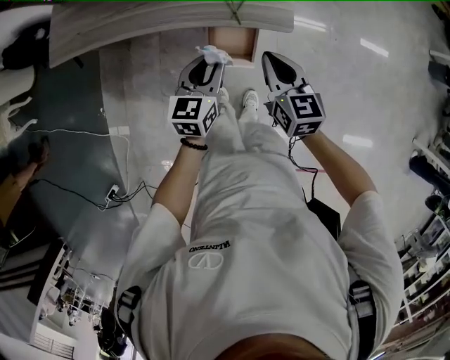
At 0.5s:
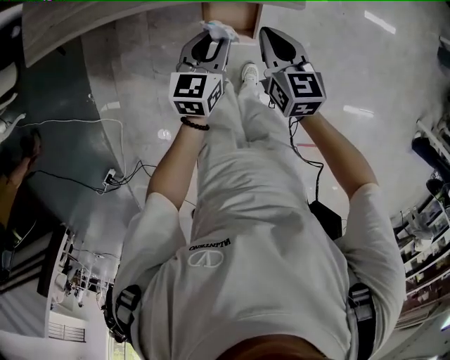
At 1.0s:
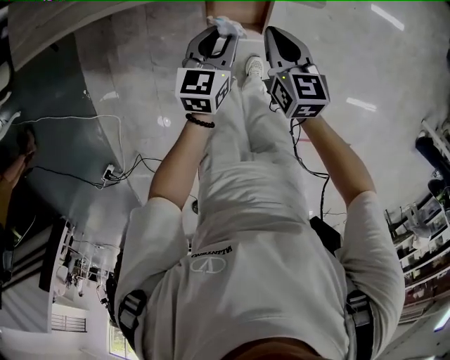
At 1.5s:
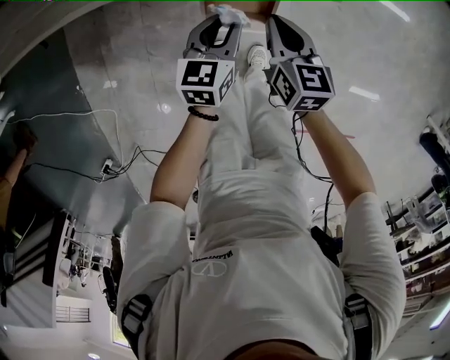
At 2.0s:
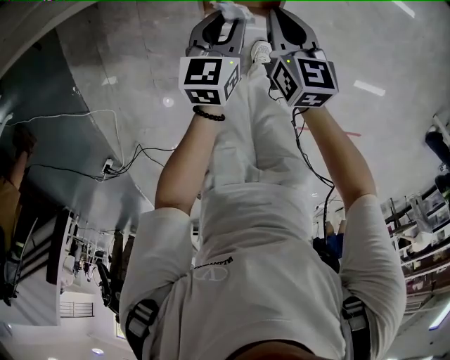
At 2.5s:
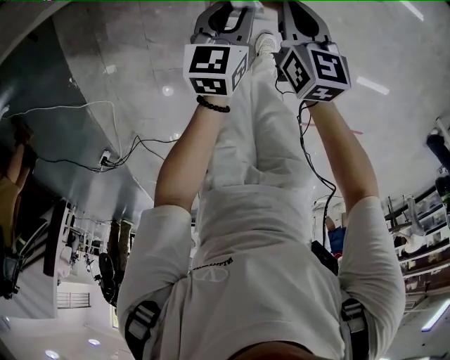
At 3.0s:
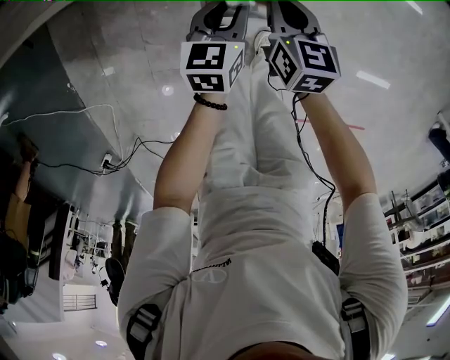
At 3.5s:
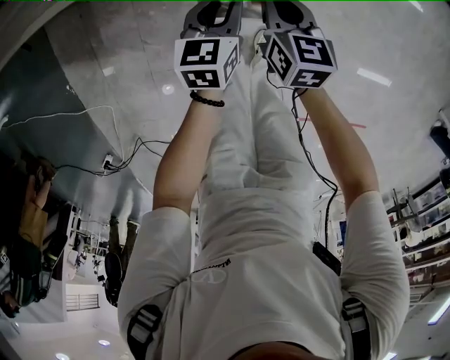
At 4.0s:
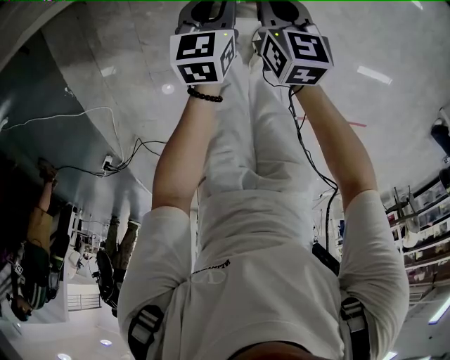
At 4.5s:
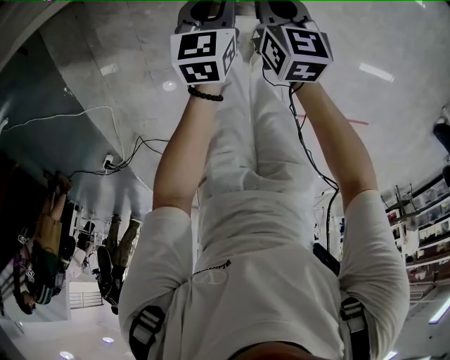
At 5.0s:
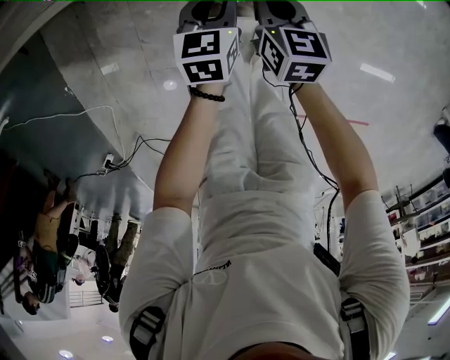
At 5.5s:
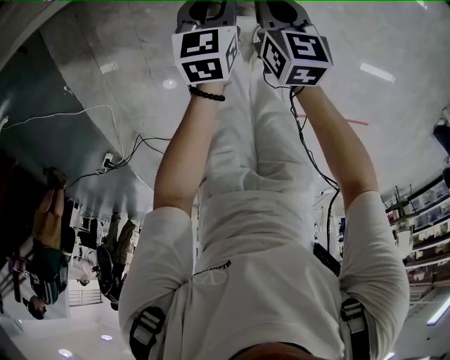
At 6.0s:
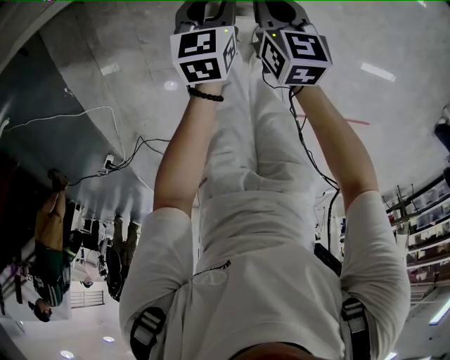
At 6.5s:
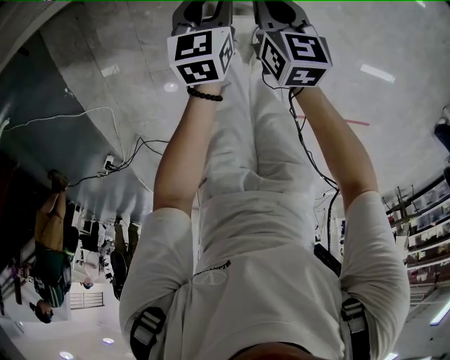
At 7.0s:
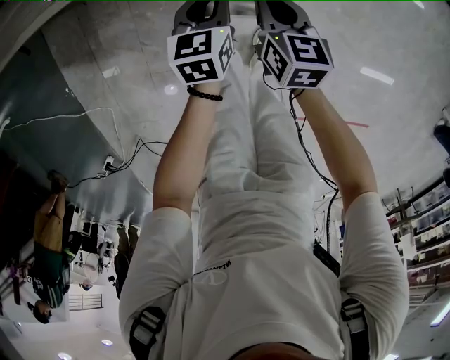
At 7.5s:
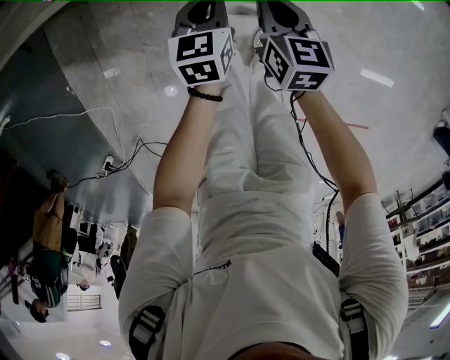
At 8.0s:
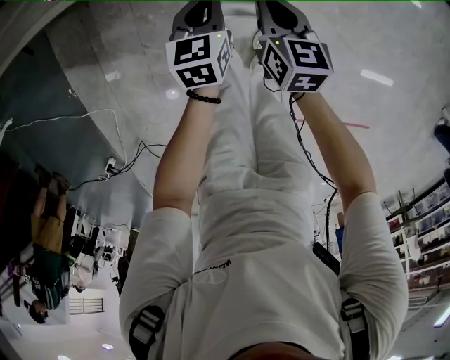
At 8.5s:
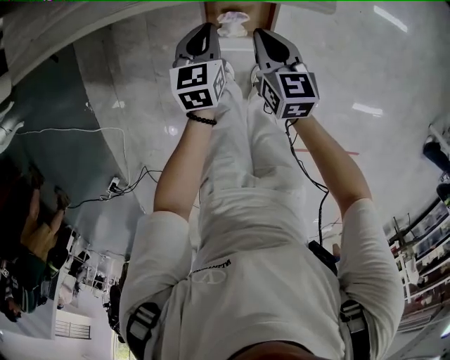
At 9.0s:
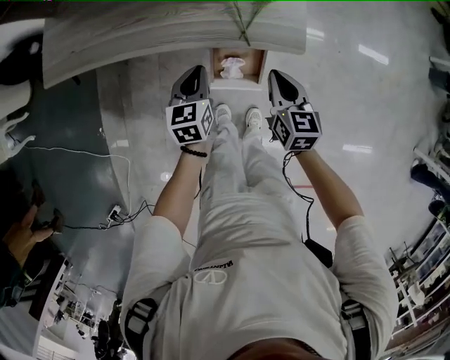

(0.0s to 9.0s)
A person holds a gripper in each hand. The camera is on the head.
0.0s - 2.0s: The grippers both shift downward by about 25 cm.
2.0s - 4.5s: Both grippers travel together downward, about 10 cm.
4.5s - 7.0s: The grippers make only small movements.
7.0s - 9.0s: Both grippers move upward, approximately 25 cm.

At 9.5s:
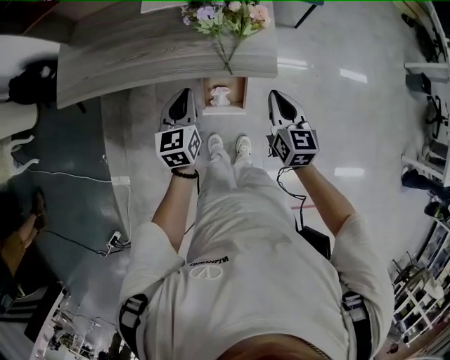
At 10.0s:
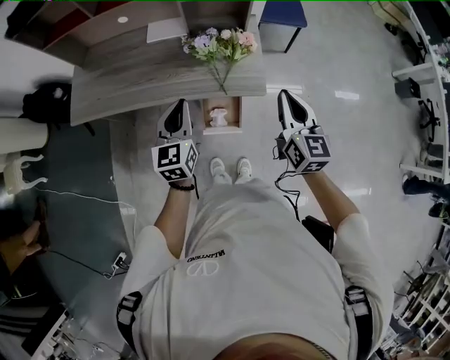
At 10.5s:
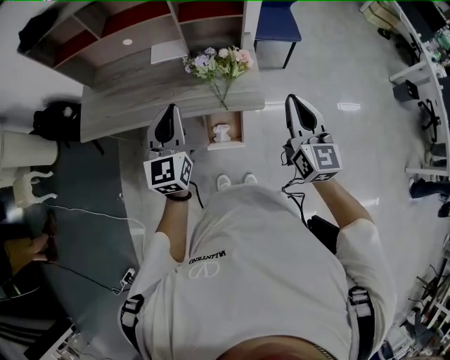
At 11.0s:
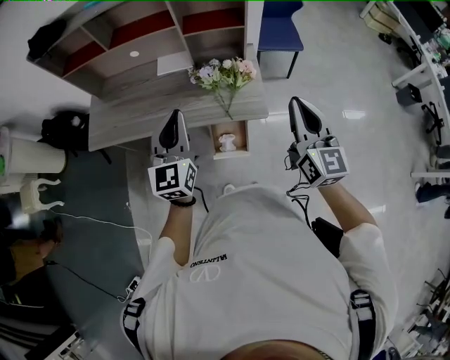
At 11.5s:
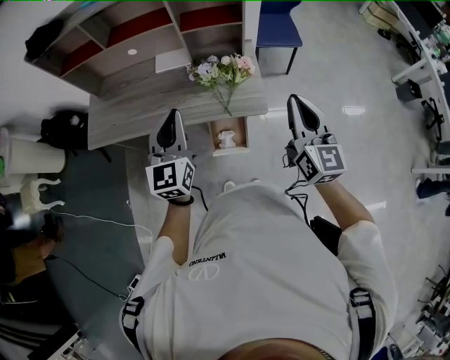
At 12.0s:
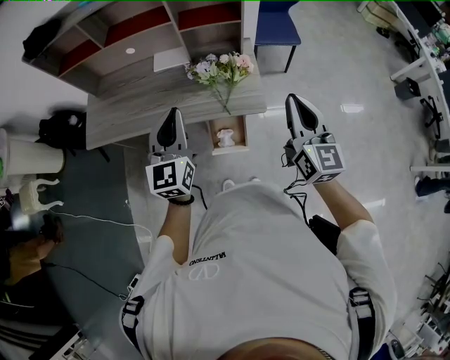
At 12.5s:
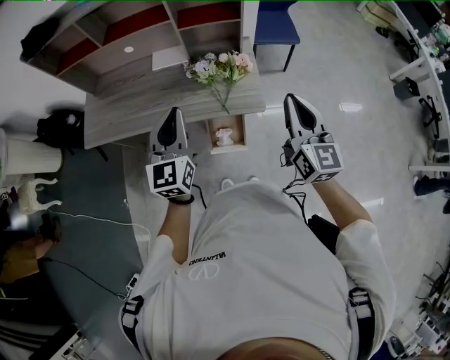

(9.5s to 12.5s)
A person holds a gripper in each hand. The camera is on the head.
9.5s - 11.0s: The grippers both shift upward by approximately 25 cm. The right gripper turns by roughly 30 degrees. Meanwhile the left gripper rotates some 30 degrees.
11.0s - 12.5s: The grippers make only small movements.

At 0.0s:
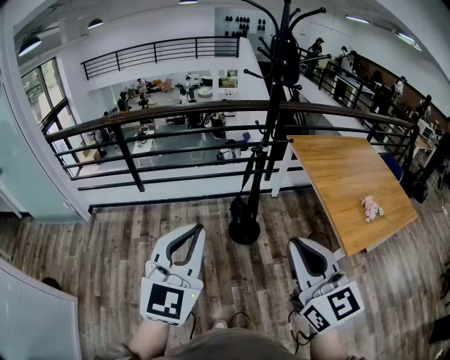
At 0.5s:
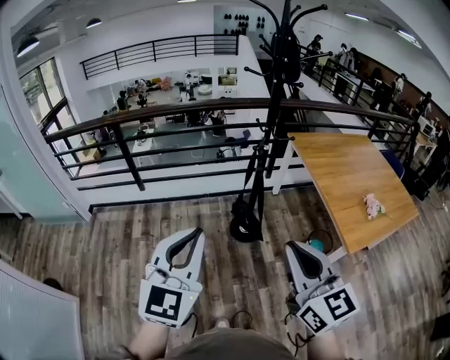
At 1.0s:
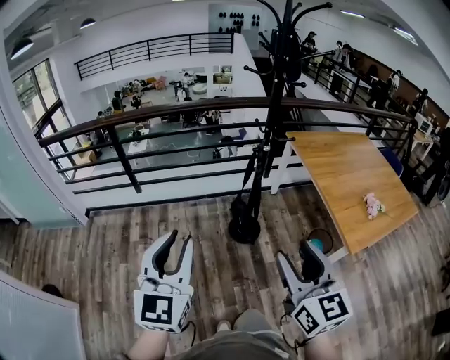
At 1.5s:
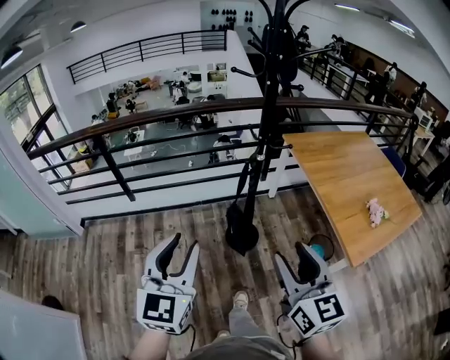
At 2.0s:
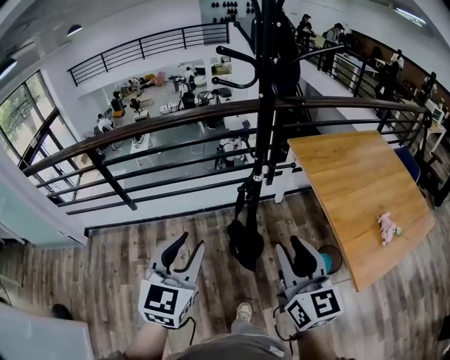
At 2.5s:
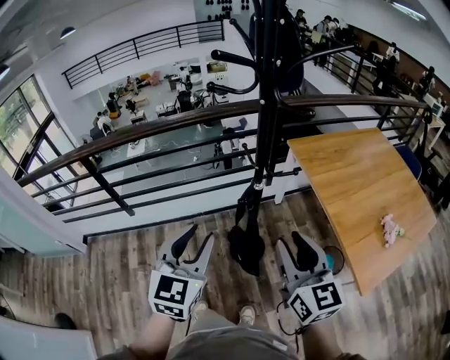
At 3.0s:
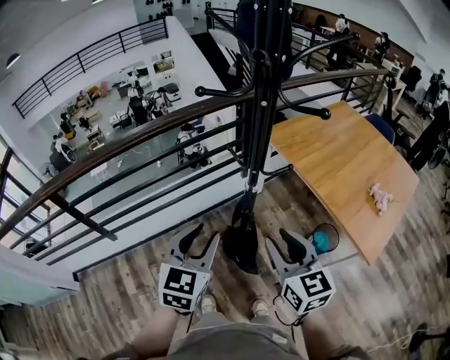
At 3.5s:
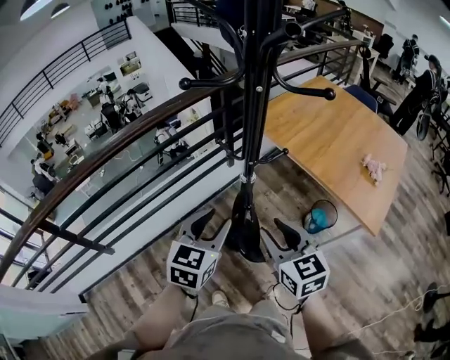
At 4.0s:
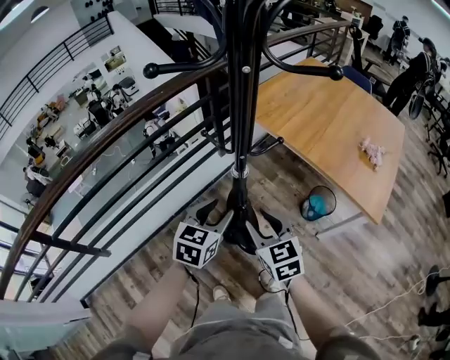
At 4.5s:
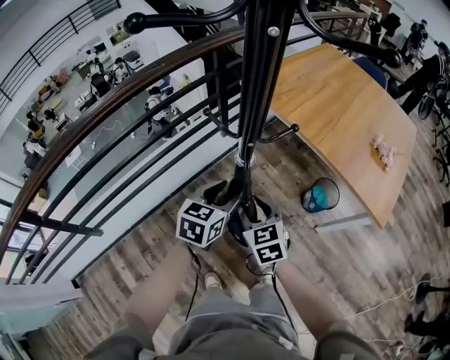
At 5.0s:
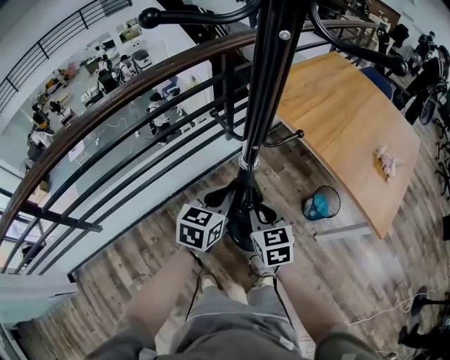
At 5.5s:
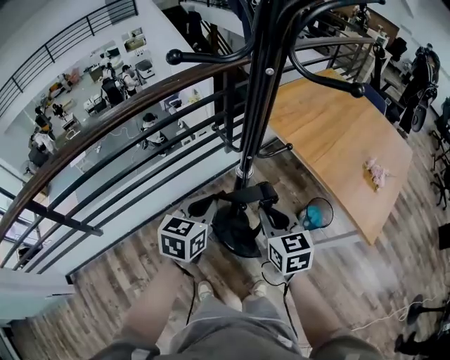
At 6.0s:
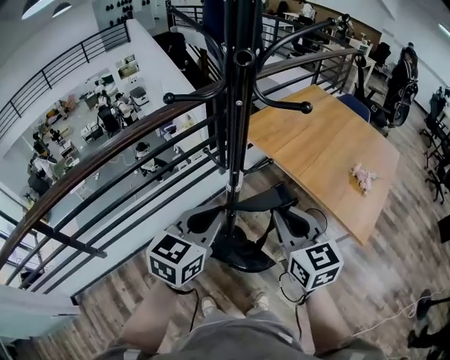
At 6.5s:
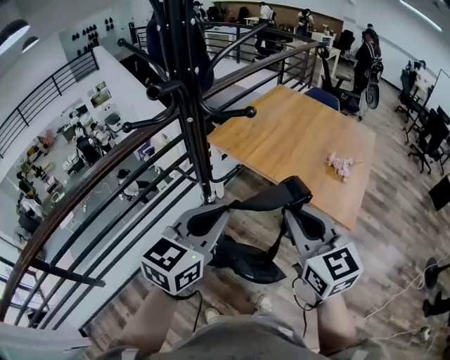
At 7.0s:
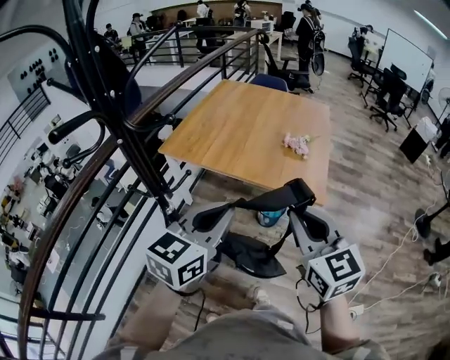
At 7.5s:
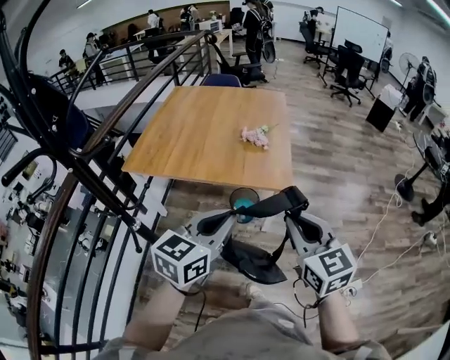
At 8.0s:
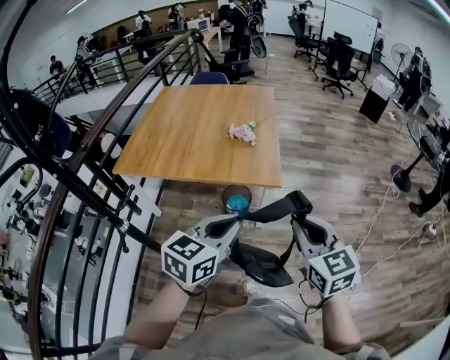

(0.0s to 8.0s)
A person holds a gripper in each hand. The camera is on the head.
0.0s - 2.0s: The grippers both shift forward by about 25 cm. The right gripper opens; the left gripper opens up.
2.0s - 4.0s: The left gripper changes place by roughly 30 cm, and swivels approximately 50 degrees. The right gripper moves downward, some 20 cm, and turns by some 30 degrees.
4.0s - 6.0s: The left gripper goes some 15 cm upward, and closes. Meanwhile the right gripper moves upward and to the right, roughly 20 cm, and closes its fingers.
6.0s - 8.0s: The right gripper ends up some 40 cm from where it was, and rotates some 40 degrees. Meanwhile the left gripper reaches about 5 cm upward, then returns, and rotates about 50 degrees.

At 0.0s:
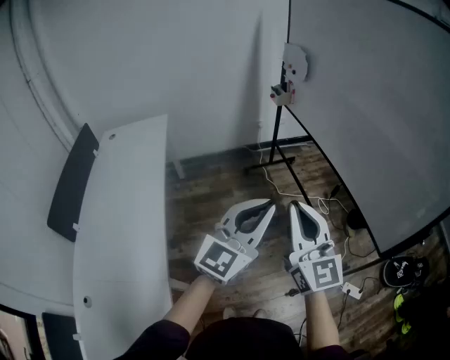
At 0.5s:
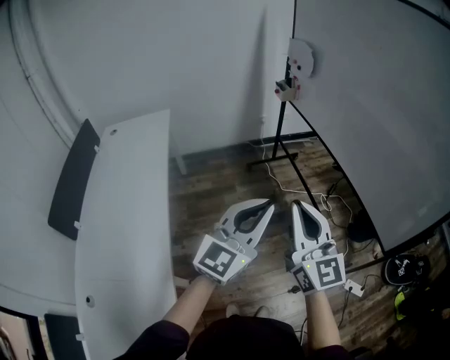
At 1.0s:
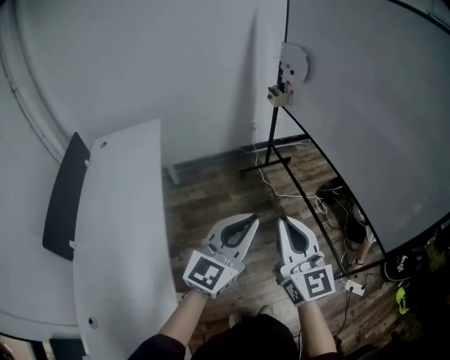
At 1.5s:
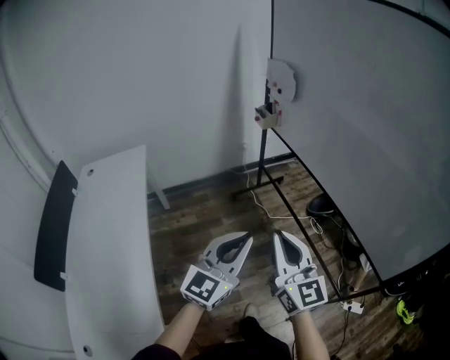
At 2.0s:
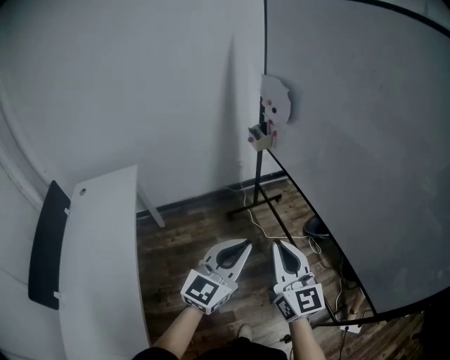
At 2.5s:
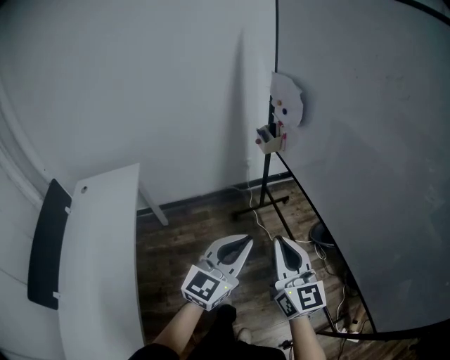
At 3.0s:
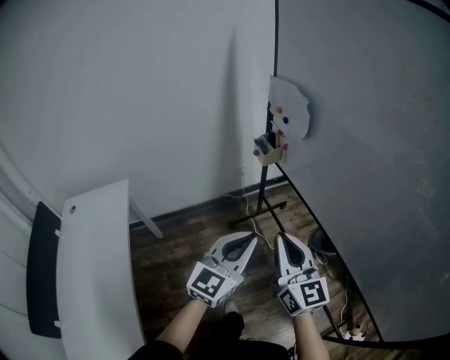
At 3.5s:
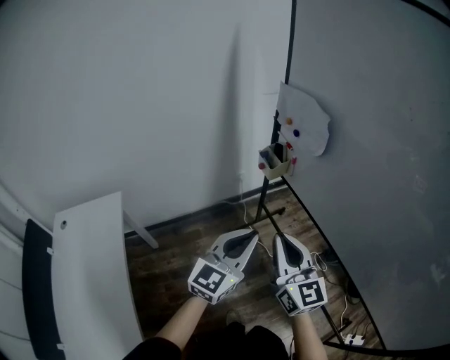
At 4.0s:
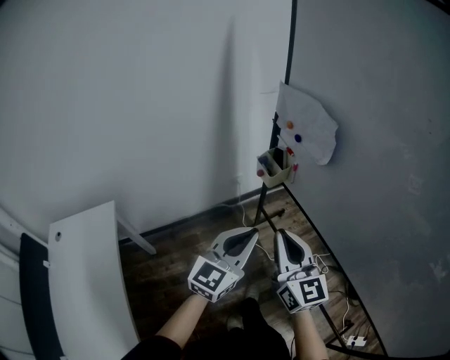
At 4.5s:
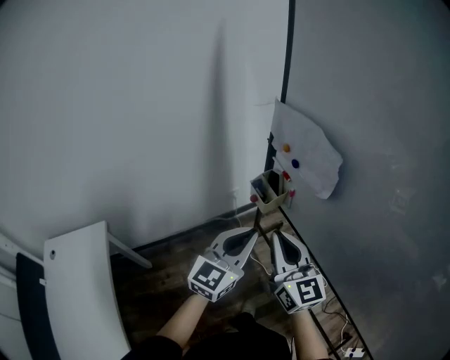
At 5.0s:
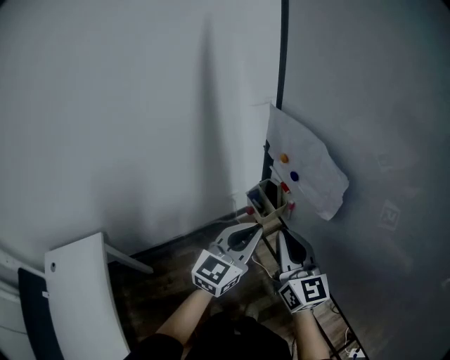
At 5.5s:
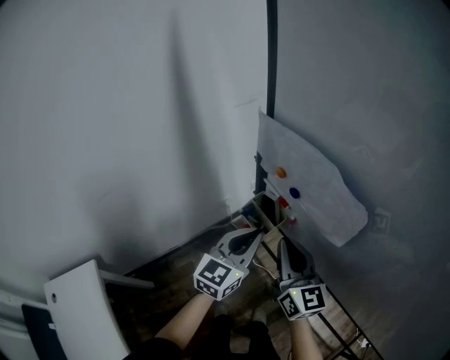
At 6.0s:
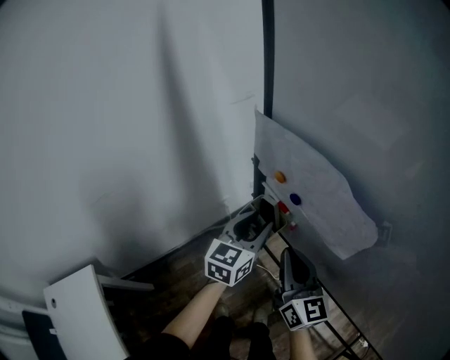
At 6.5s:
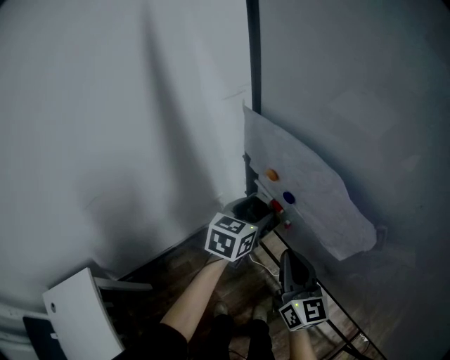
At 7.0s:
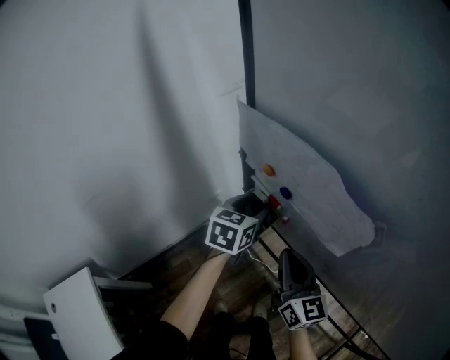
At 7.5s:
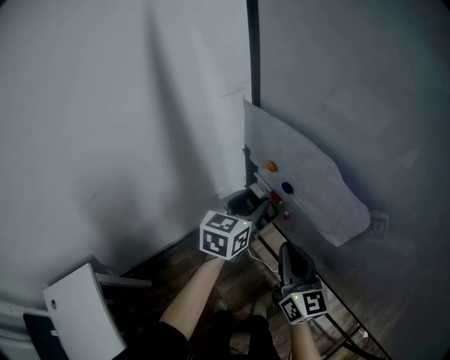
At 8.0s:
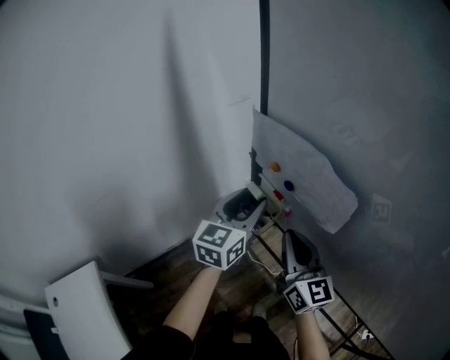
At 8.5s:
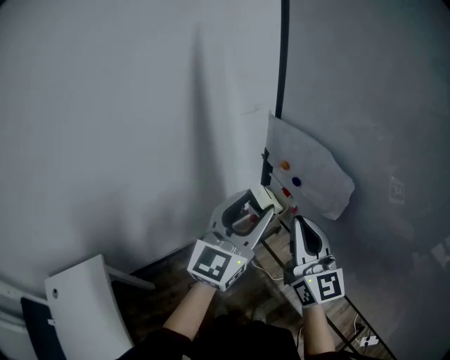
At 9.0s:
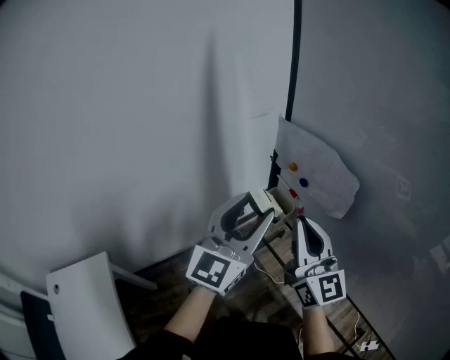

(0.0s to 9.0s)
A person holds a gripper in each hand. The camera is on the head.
0.0s - 2.0s: The grippers both shift forward by about 25 cm.
2.0s - 4.5s: The two grippers travel together, forward, roughly 50 cm.
4.5s - 7.0s: The right gripper is displaced forward and downward by approximately 20 cm, and rotates some 20 degrees, while the left gripper travels forward and downward by some 30 cm, rotates some 30 degrees, and opens up.
7.0s - 9.0s: The two grippers go approximately 30 cm upward and backward. The right gripper changes its angle by about 30 degrees. Meanwhile the left gripper tips its fingers upward by about 40 degrees.
